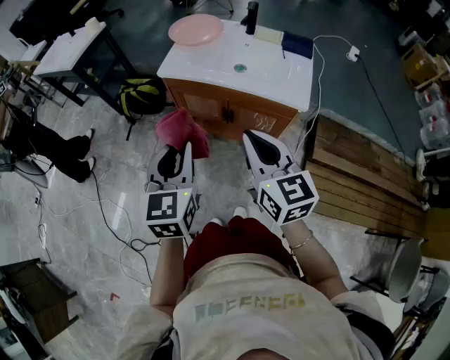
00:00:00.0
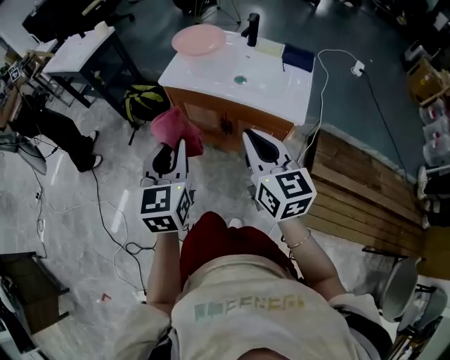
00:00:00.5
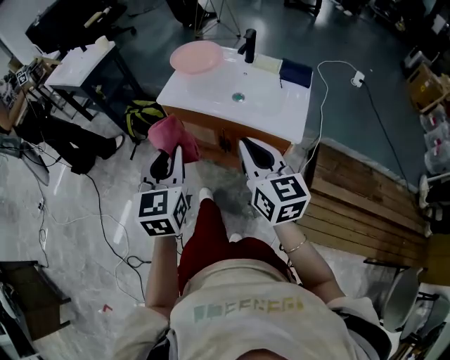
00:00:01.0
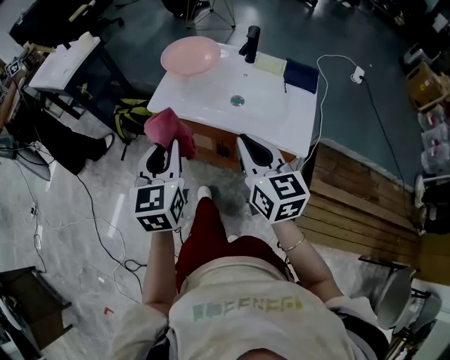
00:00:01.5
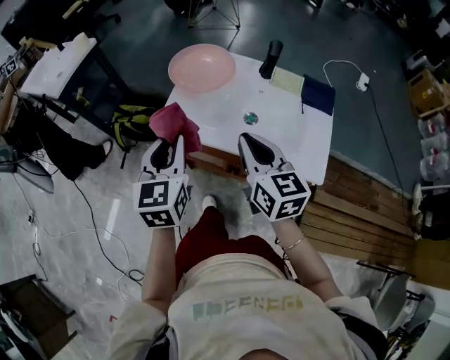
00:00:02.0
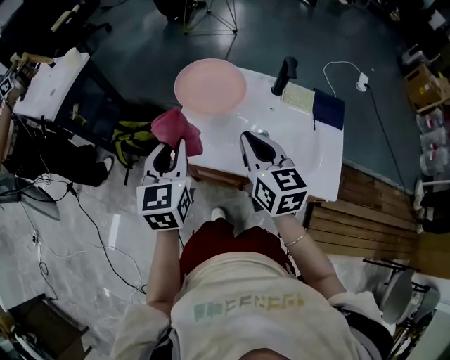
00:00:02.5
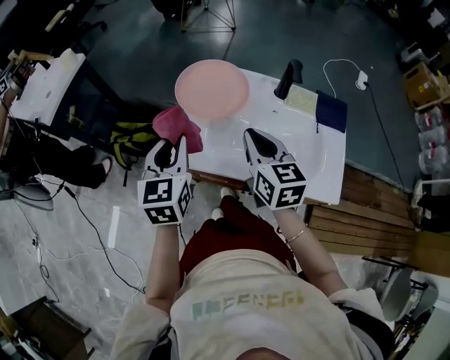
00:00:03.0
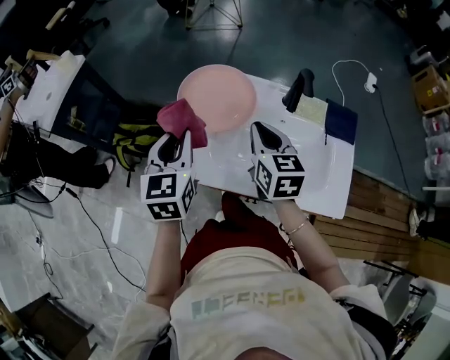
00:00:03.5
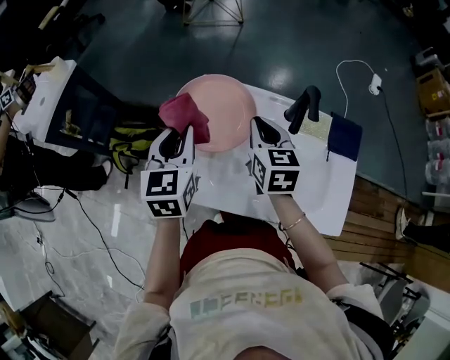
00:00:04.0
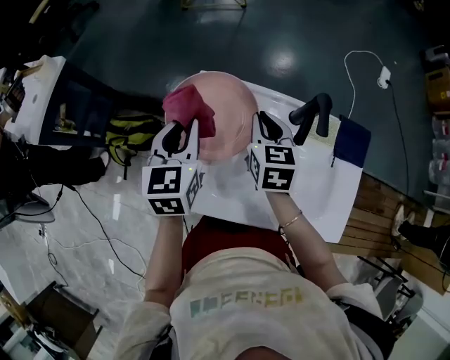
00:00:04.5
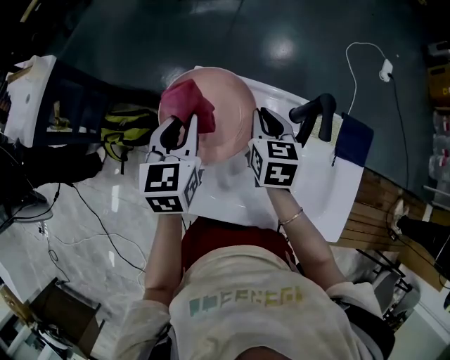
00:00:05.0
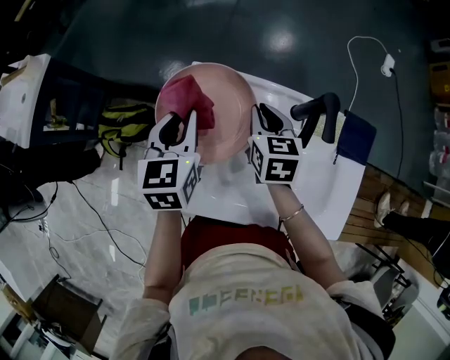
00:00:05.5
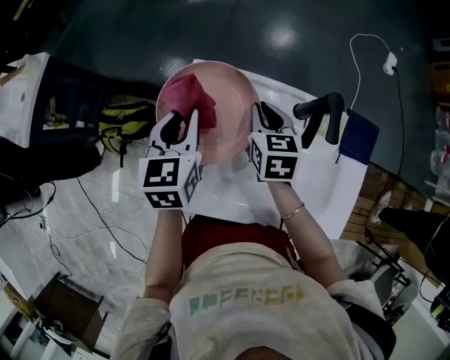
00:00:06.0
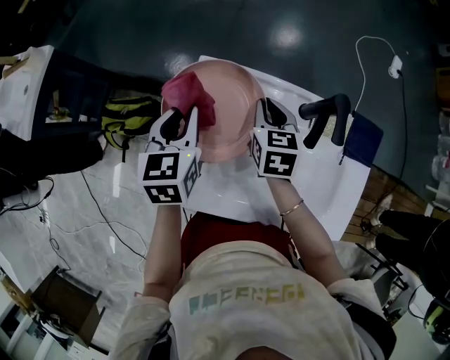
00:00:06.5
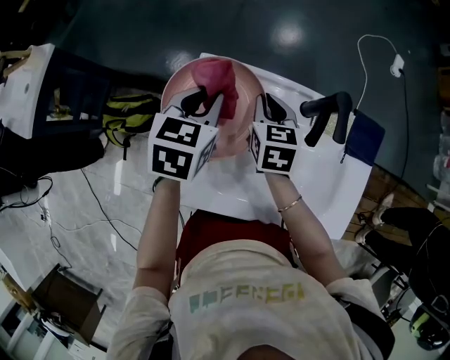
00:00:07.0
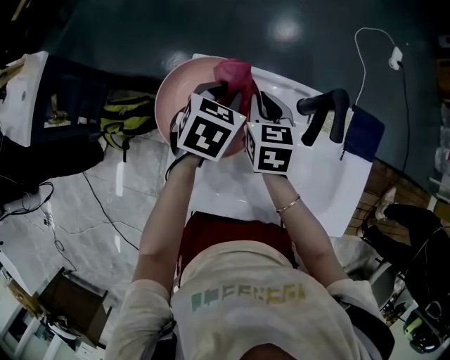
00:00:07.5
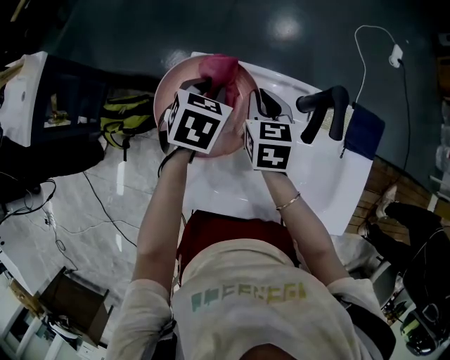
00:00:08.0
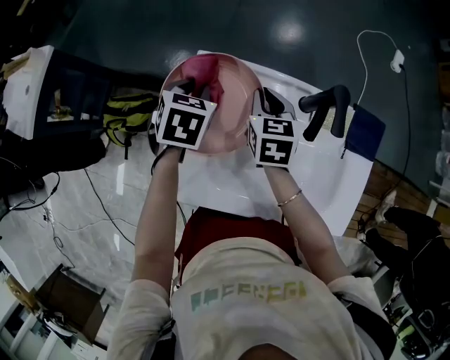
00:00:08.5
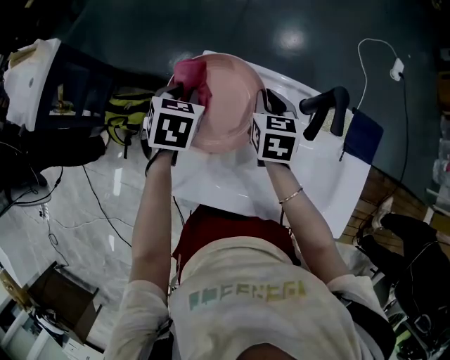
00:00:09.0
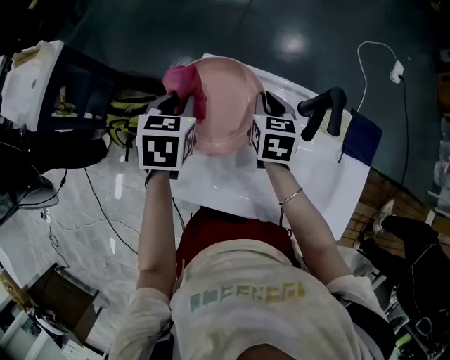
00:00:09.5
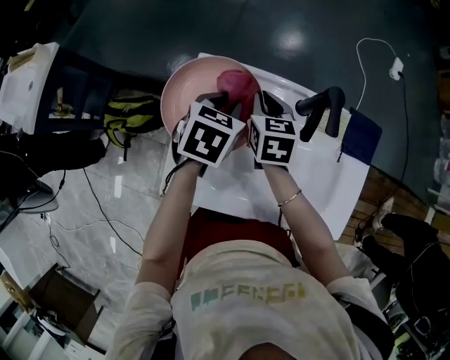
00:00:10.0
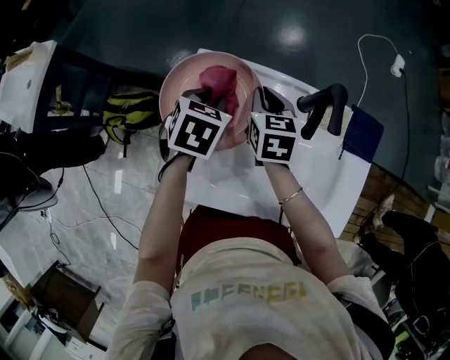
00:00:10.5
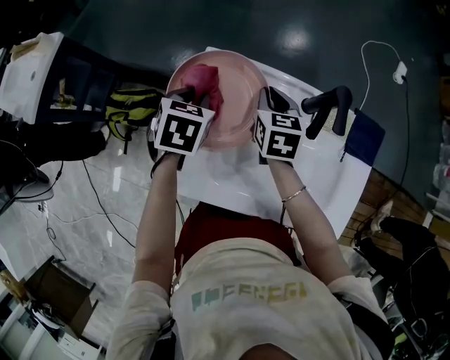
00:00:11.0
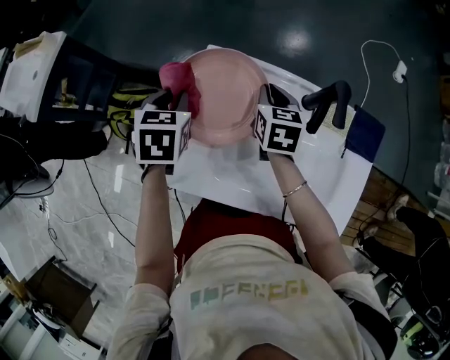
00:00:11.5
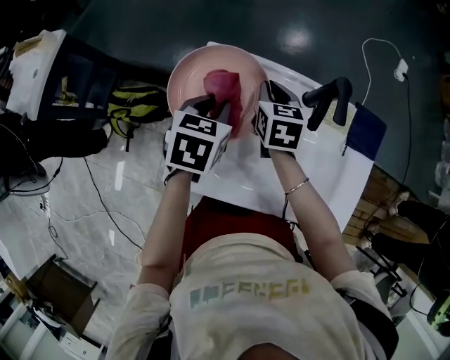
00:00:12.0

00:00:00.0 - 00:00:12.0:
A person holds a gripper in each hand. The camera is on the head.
00:00:00.0 - 00:00:02.0: The two grippers go roughly 30 cm forward.
00:00:02.0 - 00:00:04.0: The grippers both shift forward by about 30 cm.
00:00:04.0 - 00:00:06.0: The right gripper is displaced downward and forward by some 10 cm. Meanwhile the left gripper goes roughly 10 cm forward and downward.
00:00:06.0 - 00:00:08.0: The left gripper travels downward, to the right and forward by some 10 cm, and swivels about 30 degrees.
00:00:08.0 - 00:00:10.0: The left gripper travels to the left and back again, roughly 10 cm each way.
00:00:10.0 - 00:00:12.0: The left gripper reaches approximately 15 cm to the left, then returns.

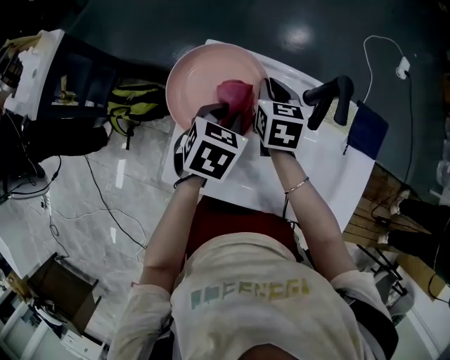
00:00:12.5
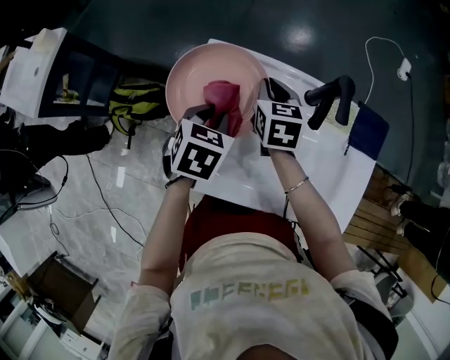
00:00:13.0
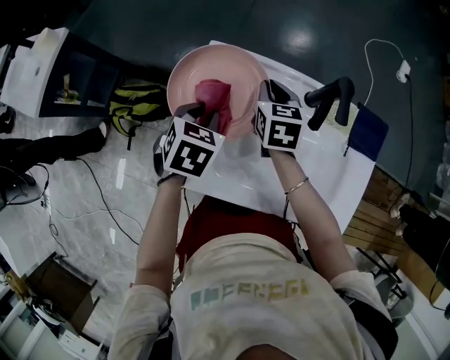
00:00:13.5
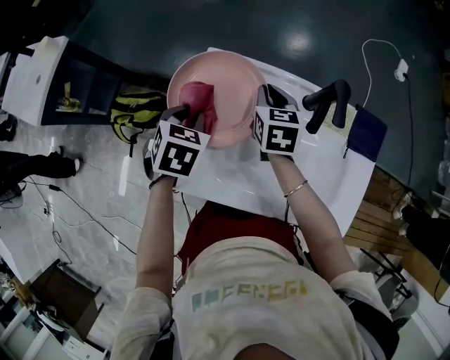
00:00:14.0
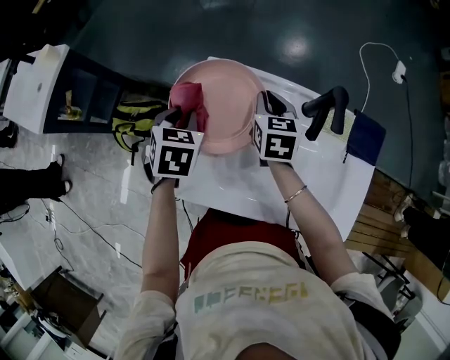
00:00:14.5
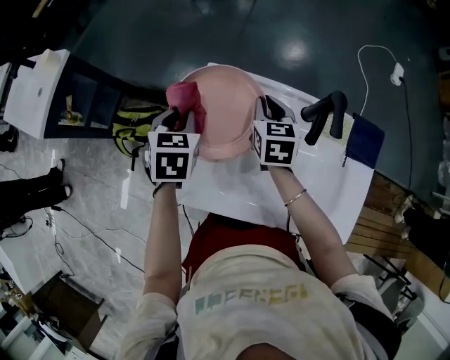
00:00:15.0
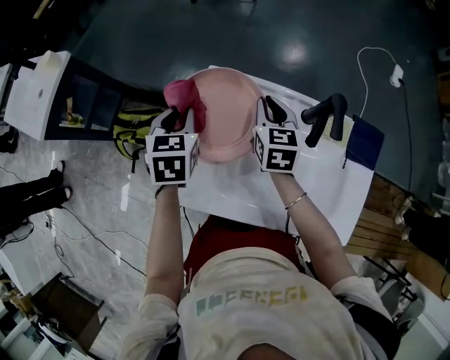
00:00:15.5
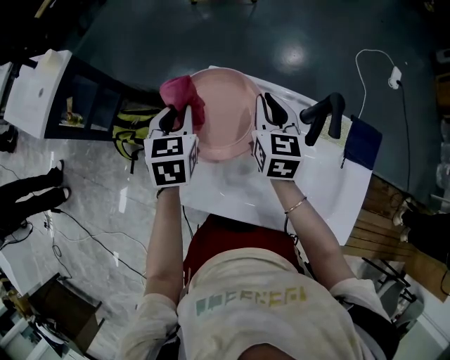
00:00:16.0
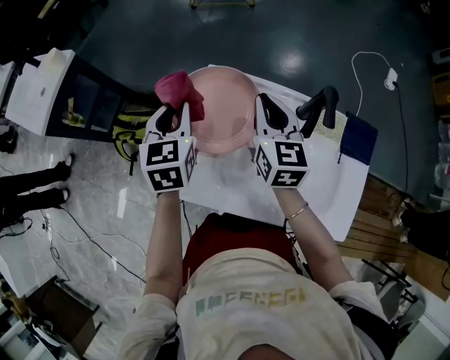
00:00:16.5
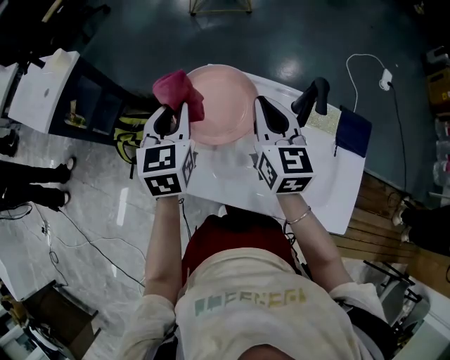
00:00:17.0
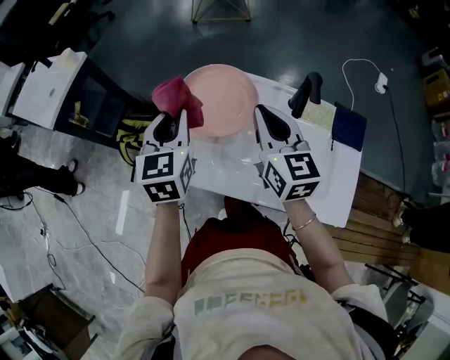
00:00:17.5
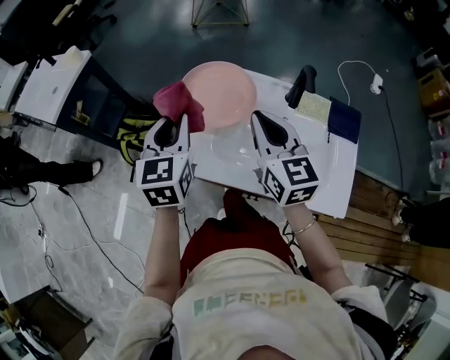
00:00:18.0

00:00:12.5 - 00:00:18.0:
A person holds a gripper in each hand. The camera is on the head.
00:00:12.5 - 00:00:14.5: The left gripper moves to the left, about 10 cm.
00:00:14.5 - 00:00:16.0: The right gripper moves upward, approximately 5 cm. Meanwhile the left gripper moves about 5 cm.
00:00:16.0 - 00:00:18.0: Both grippers travel together backward and upward, roughly 20 cm.

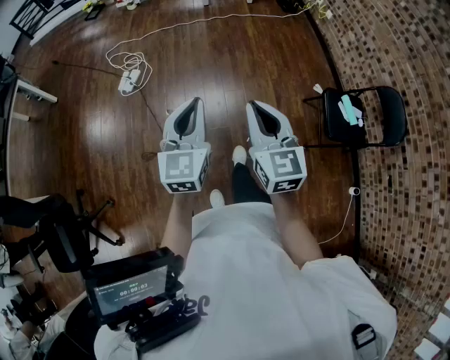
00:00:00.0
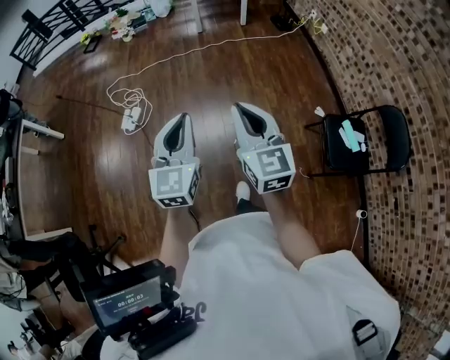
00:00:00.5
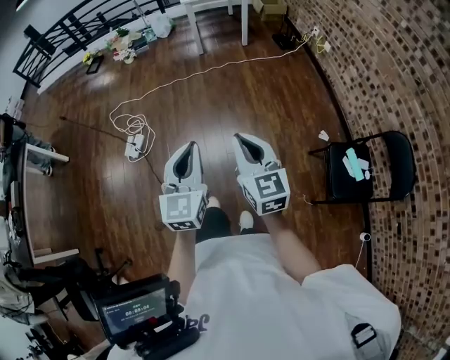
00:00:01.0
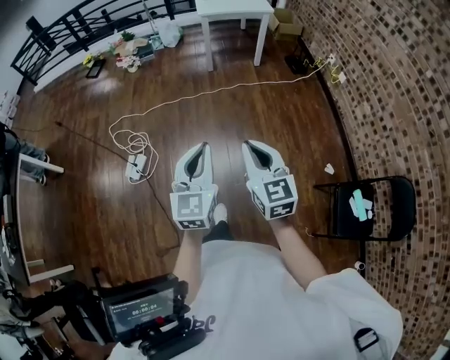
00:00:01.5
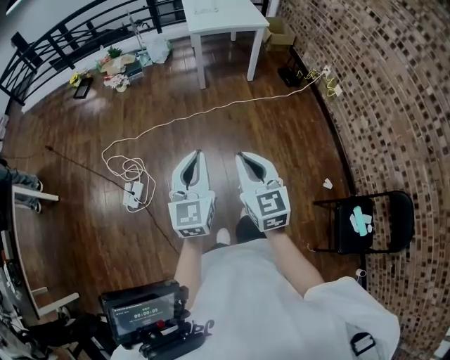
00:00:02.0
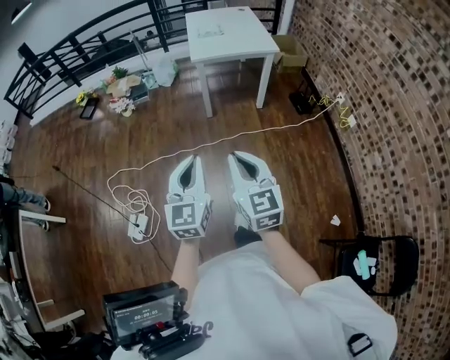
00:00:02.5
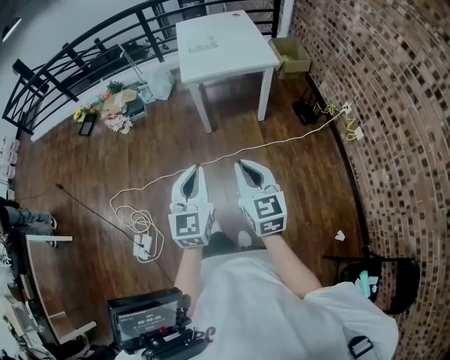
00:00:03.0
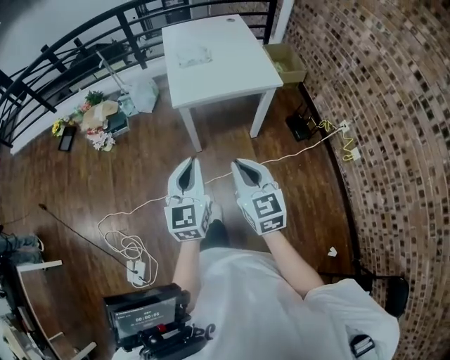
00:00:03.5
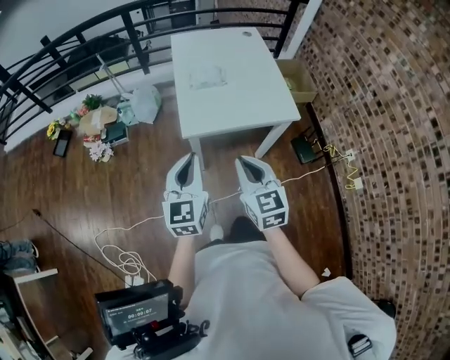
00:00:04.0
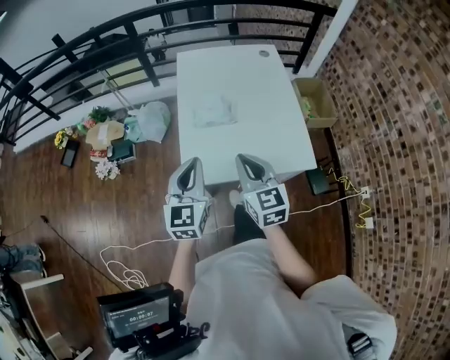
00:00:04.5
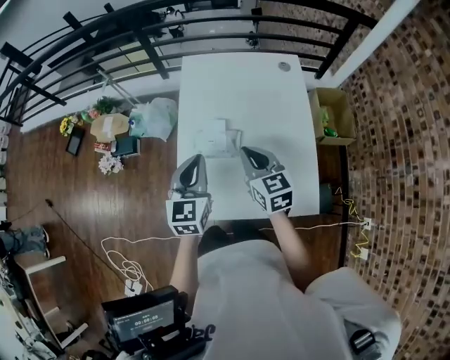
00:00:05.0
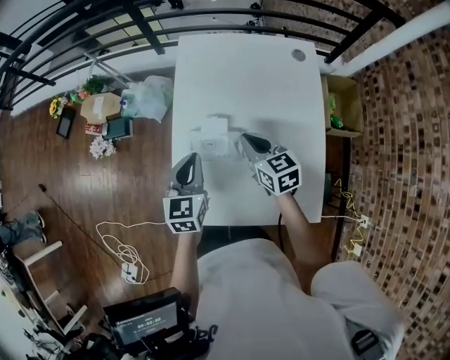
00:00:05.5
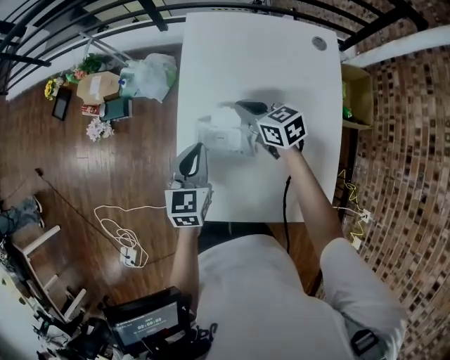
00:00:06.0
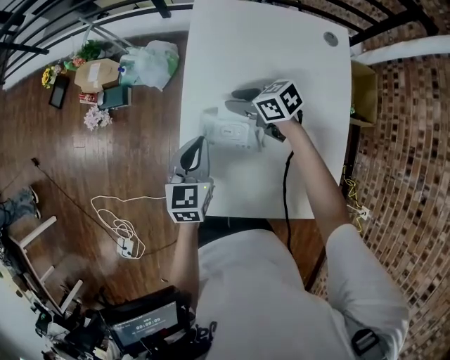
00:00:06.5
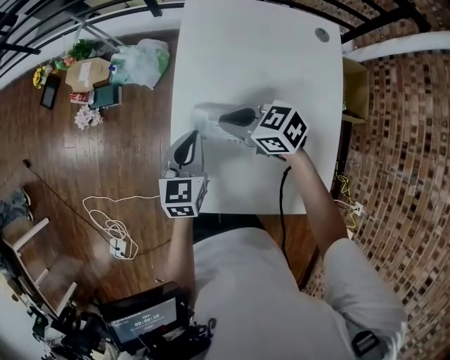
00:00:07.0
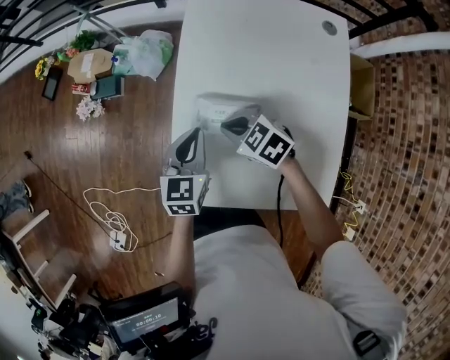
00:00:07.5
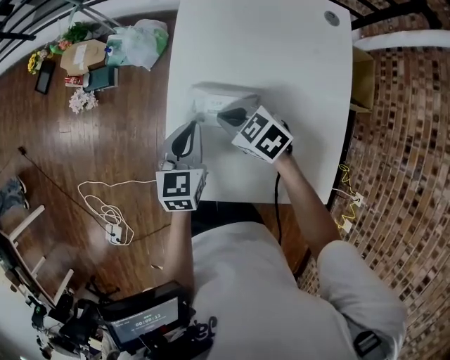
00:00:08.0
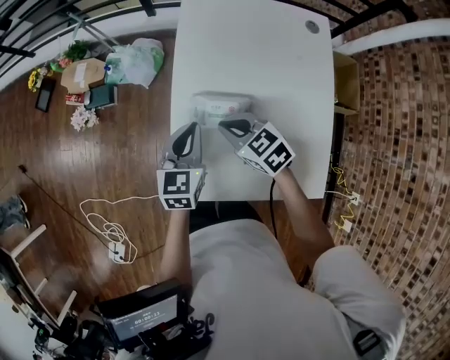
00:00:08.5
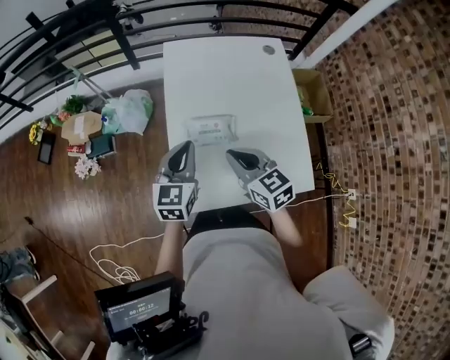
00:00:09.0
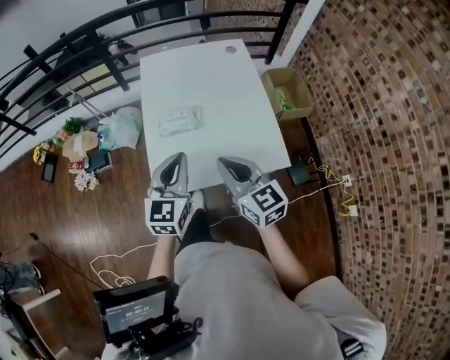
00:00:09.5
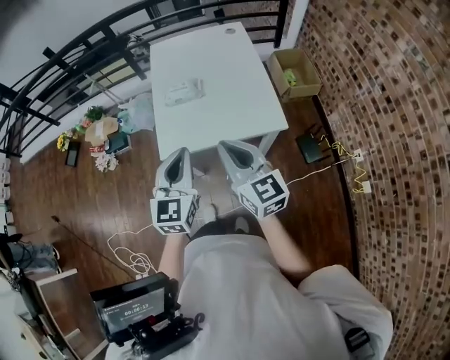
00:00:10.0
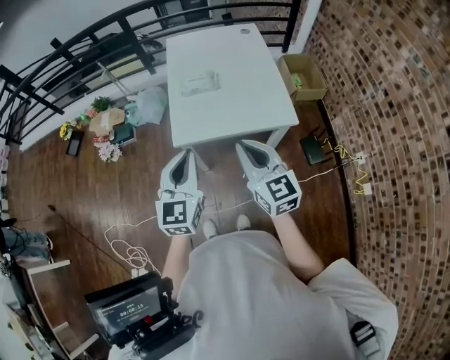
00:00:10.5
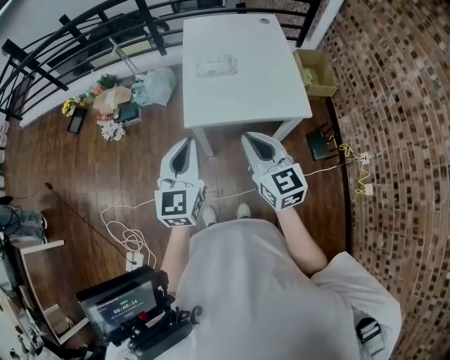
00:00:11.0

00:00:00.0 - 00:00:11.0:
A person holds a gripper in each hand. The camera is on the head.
00:00:00.0 - 00:00:02.0: The pair of grippers is taken forward, roughly 60 cm.
00:00:02.0 - 00:00:03.5: The pair of grippers is taken forward, roughly 70 cm.
00:00:03.5 - 00:00:05.5: The two grippers travel together, forward, about 70 cm. The left gripper rotates roughly 20 degrees, while the right gripper changes its angle by about 30 degrees.
00:00:05.5 - 00:00:07.5: The right gripper travels to the left and downward by approximately 15 cm, rotates some 40 degrees, and opens and closes again. The left gripper shifts roughly 5 cm downward.
00:00:07.5 - 00:00:09.0: The grippers both shift upward by about 15 cm. The right gripper turns by approximately 50 degrees.
00:00:09.0 - 00:00:11.0: Both grippers travel together backward, roughly 35 cm.
